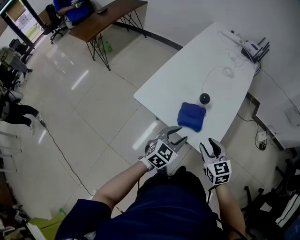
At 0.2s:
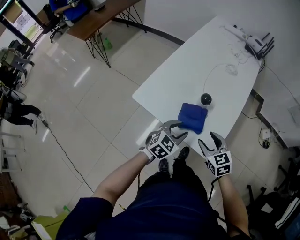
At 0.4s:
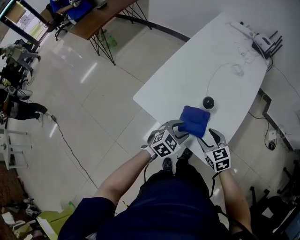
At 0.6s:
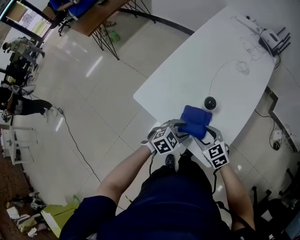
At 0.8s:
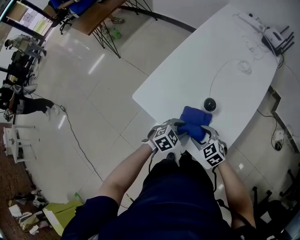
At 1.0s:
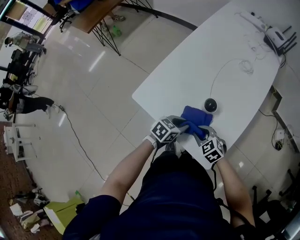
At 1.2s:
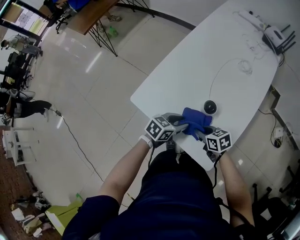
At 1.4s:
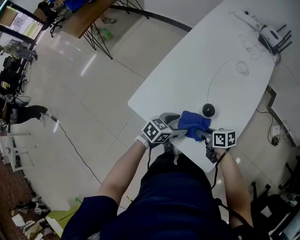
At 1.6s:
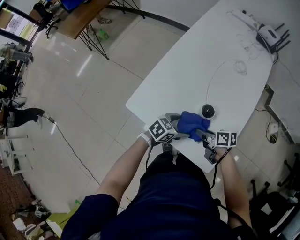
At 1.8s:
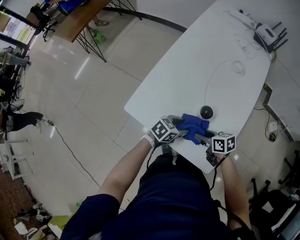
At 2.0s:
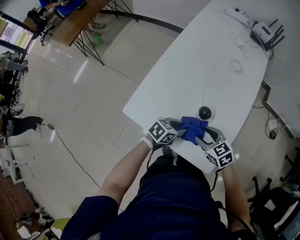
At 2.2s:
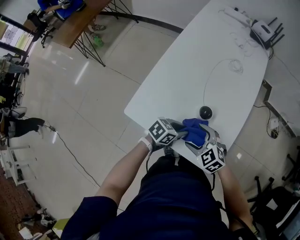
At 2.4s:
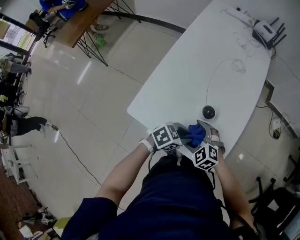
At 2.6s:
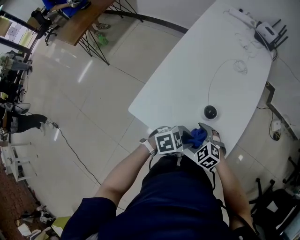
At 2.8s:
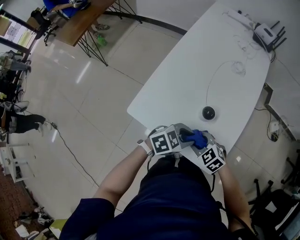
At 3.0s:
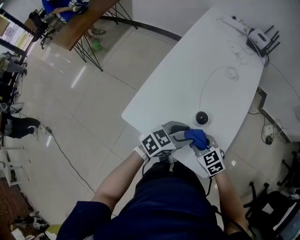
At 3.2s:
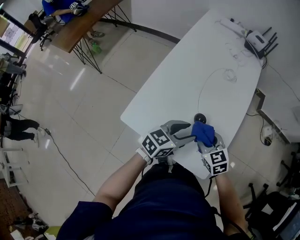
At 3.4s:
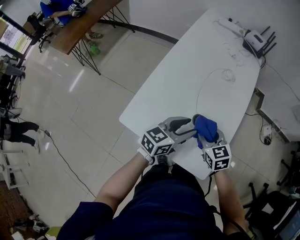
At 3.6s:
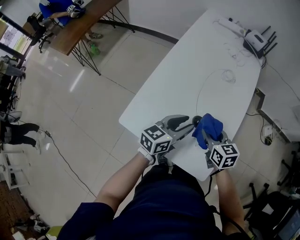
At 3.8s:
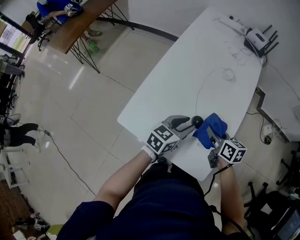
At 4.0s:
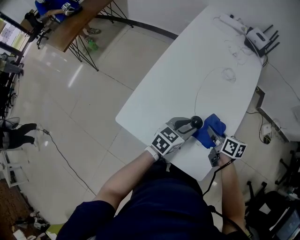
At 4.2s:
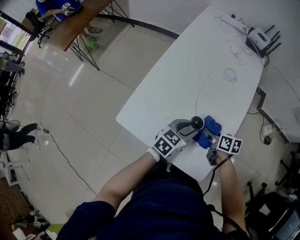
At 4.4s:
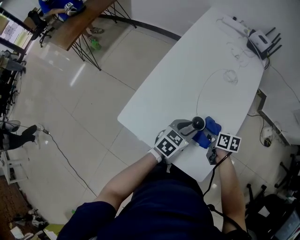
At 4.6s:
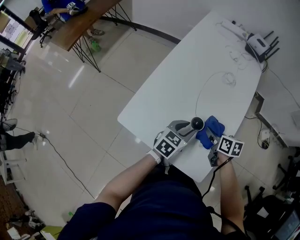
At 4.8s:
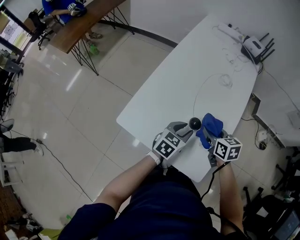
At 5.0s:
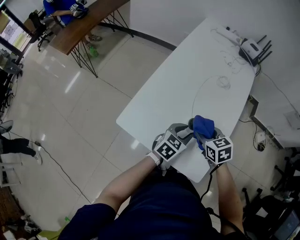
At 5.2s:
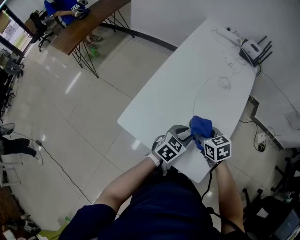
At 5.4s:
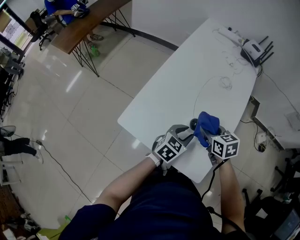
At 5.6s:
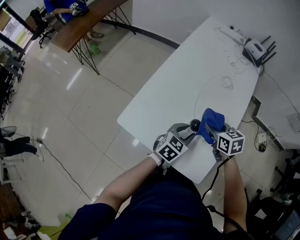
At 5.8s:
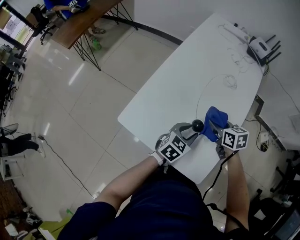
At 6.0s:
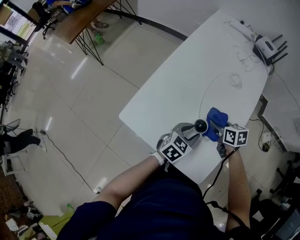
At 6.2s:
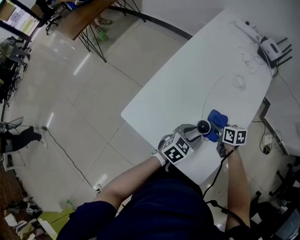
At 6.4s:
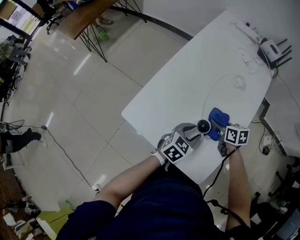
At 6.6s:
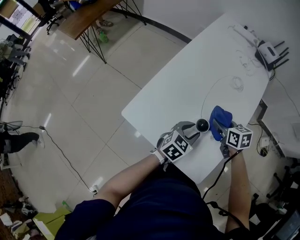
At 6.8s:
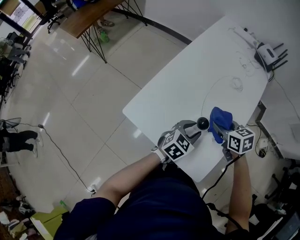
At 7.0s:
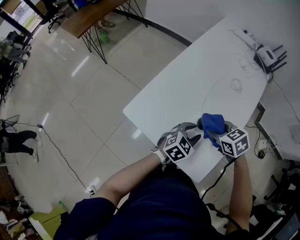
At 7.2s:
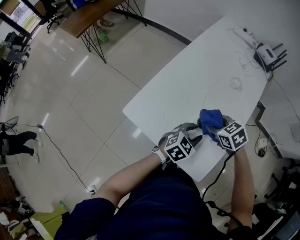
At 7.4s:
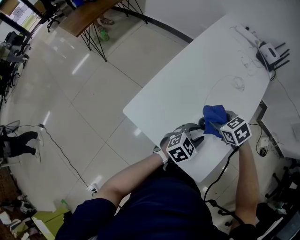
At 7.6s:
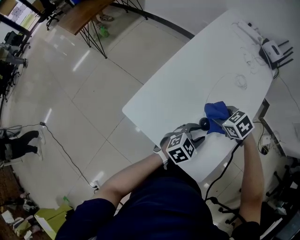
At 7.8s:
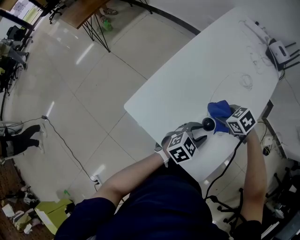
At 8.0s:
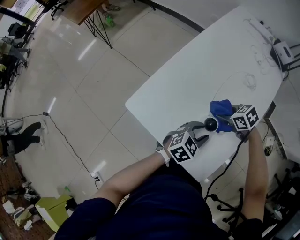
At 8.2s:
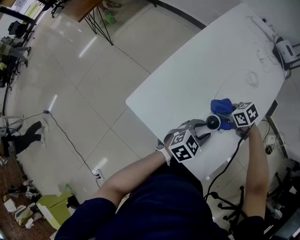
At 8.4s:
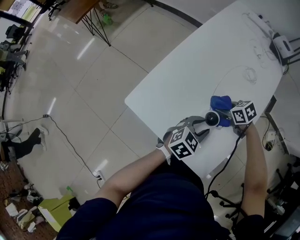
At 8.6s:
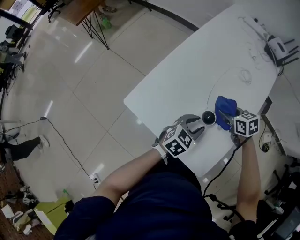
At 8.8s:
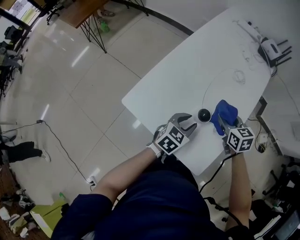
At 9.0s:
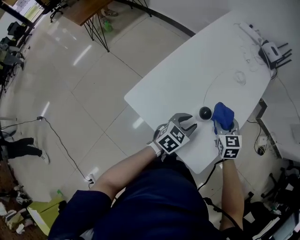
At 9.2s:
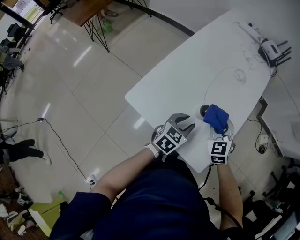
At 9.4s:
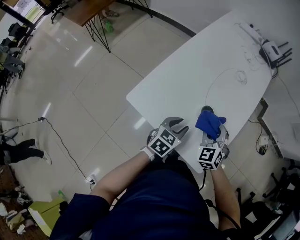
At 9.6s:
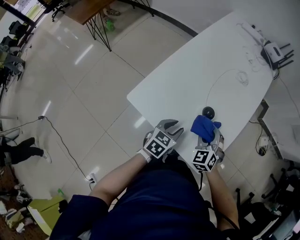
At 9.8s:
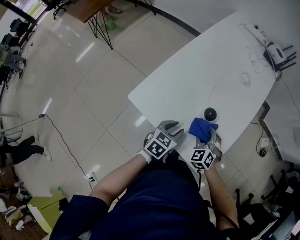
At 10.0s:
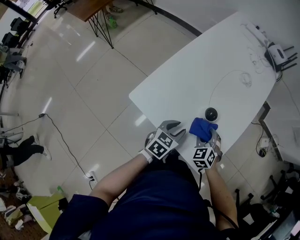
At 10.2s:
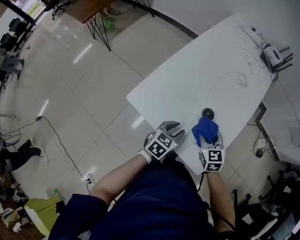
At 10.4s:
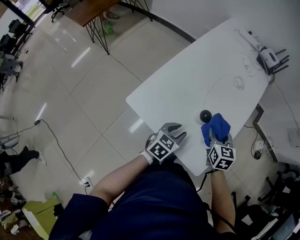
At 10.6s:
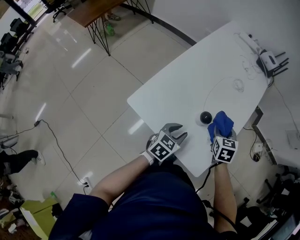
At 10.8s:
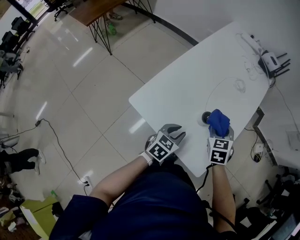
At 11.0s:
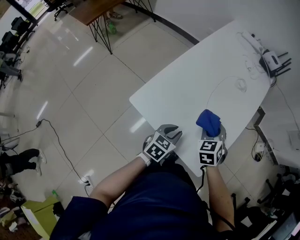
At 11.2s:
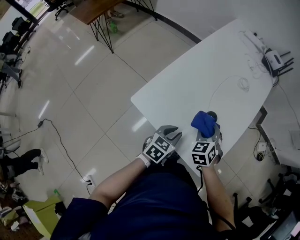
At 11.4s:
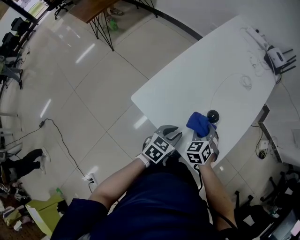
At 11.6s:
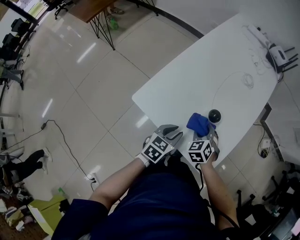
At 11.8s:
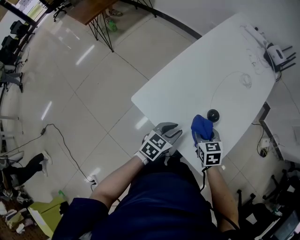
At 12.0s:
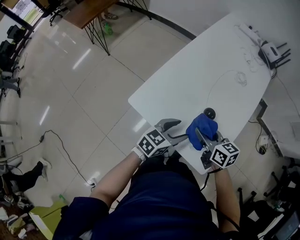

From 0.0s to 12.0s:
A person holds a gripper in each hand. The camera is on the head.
From 0.0s to 1.6s: The right gripper ends up roughly 20 cm from where it was, and rolls clockwise, seen from behind, by about 50 degrees. The left gripper changes place by roughly 15 cm, changes its angle by about 40 degrees, and opens its fingers.
From 1.6s to 3.0s: The left gripper goes about 10 cm upward, and closes. The right gripper goes up and down, some 5 cm each way, reversing 2 times, twists roughly 60 degrees counterclockwise, seen from behind, and opens, then closes once more.
From 3.0s to 4.4s: The right gripper heads forward, to the right and downward, covering about 15 cm, and twists about 60 degrees clockwise, seen from behind, while the left gripper goes about 5 cm forward.
From 4.4s to 6.0s: The right gripper is displaced forward by roughly 5 cm, goes upward and returns, roughly 10 cm each way, and turns by some 20 degrees.
From 6.0s to 7.6s: The right gripper changes its angle by some 50 degrees.
From 7.6s to 9.0s: The right gripper goes downward and returns, some 10 cm each way, and rotates about 40 degrees.
From 9.0s to 10.4s: The left gripper moves approximately 5 cm.
From 10.4s to 12.0s: The left gripper heads upward, covering some 5 cm, while the right gripper goes approximately 10 cm to the left and backward, and changes its angle by some 40 degrees.

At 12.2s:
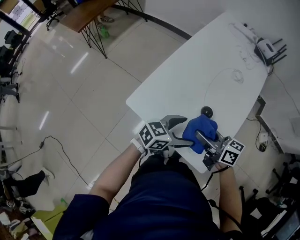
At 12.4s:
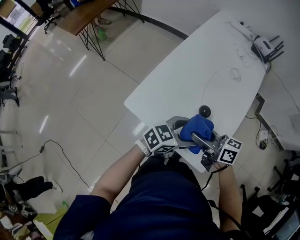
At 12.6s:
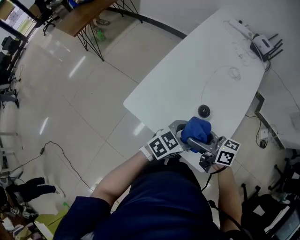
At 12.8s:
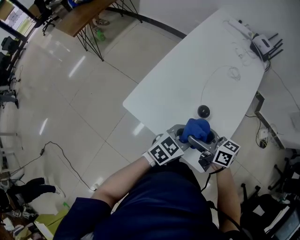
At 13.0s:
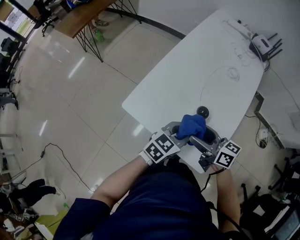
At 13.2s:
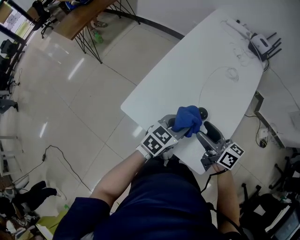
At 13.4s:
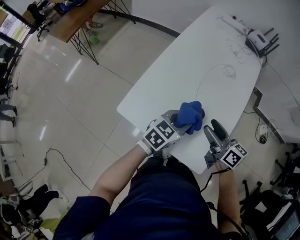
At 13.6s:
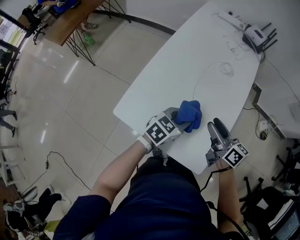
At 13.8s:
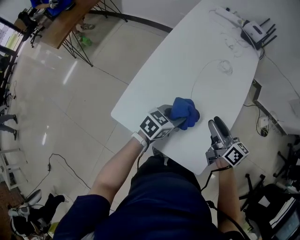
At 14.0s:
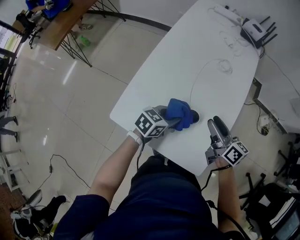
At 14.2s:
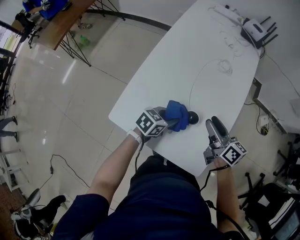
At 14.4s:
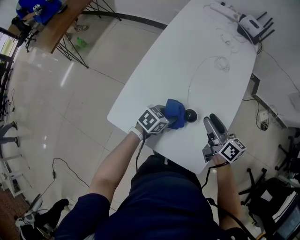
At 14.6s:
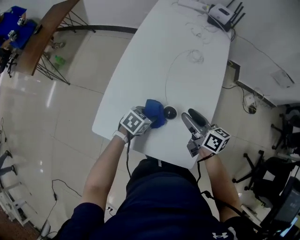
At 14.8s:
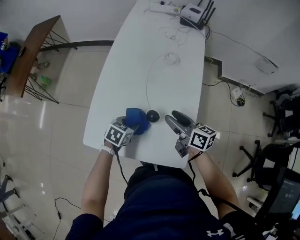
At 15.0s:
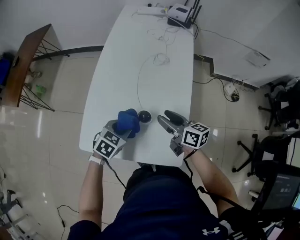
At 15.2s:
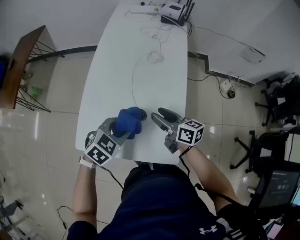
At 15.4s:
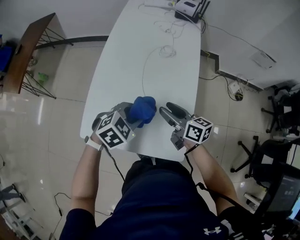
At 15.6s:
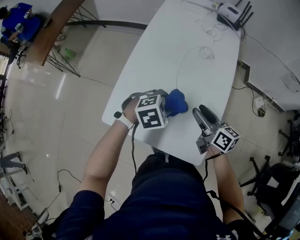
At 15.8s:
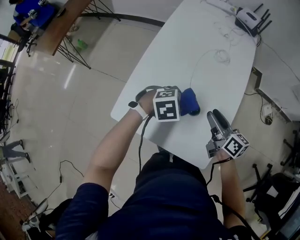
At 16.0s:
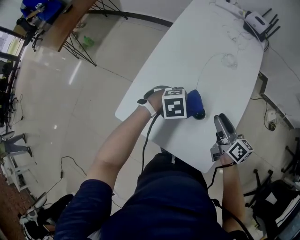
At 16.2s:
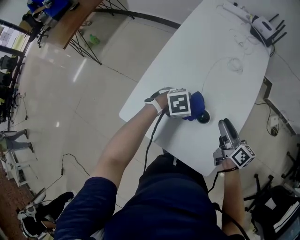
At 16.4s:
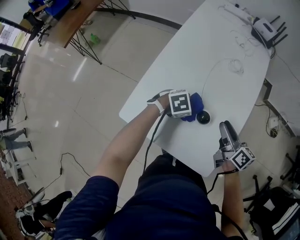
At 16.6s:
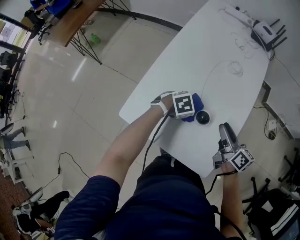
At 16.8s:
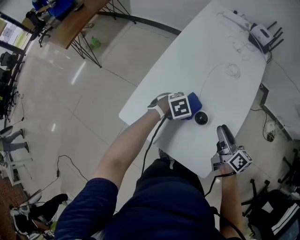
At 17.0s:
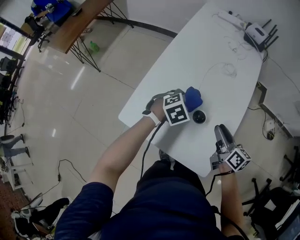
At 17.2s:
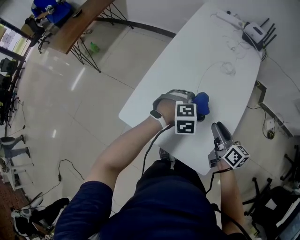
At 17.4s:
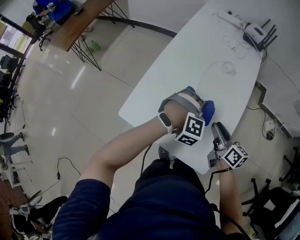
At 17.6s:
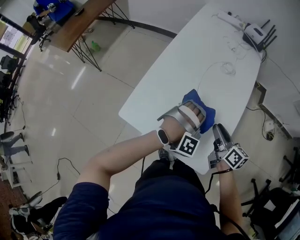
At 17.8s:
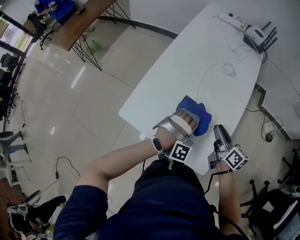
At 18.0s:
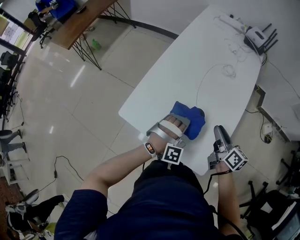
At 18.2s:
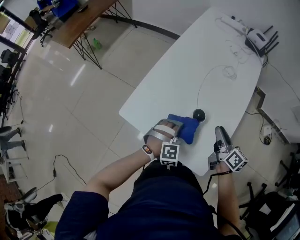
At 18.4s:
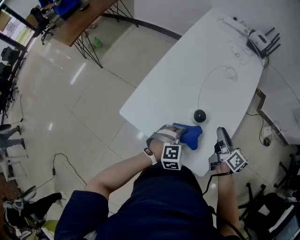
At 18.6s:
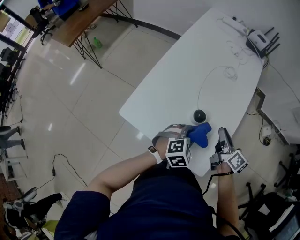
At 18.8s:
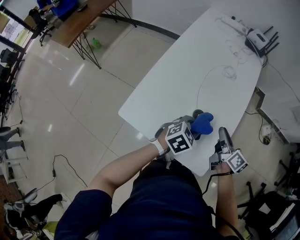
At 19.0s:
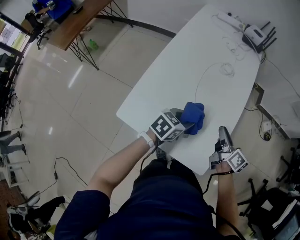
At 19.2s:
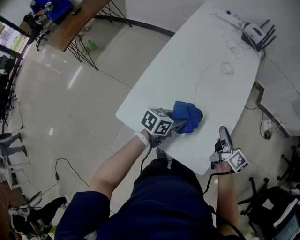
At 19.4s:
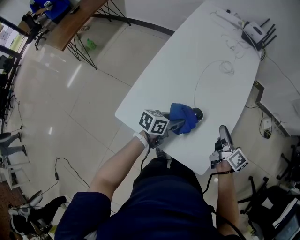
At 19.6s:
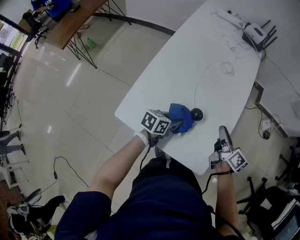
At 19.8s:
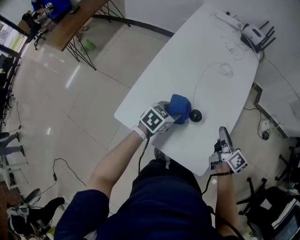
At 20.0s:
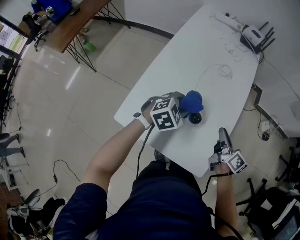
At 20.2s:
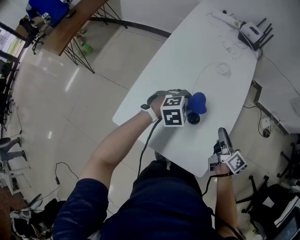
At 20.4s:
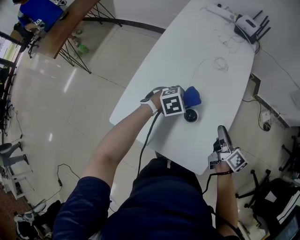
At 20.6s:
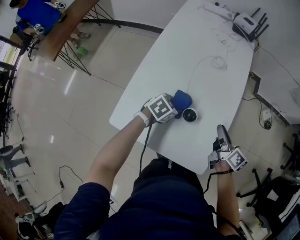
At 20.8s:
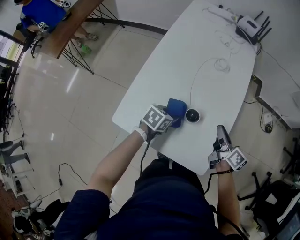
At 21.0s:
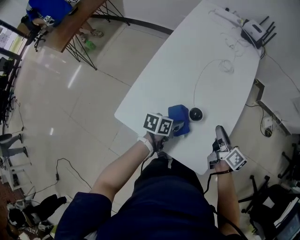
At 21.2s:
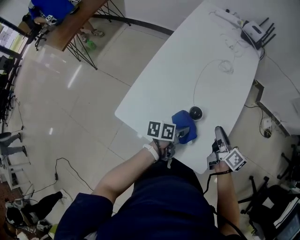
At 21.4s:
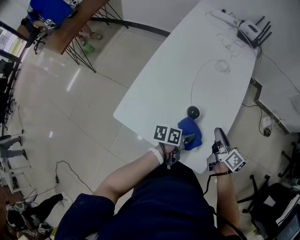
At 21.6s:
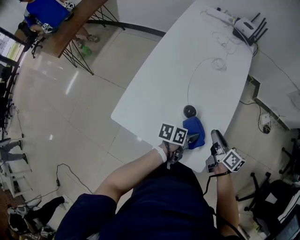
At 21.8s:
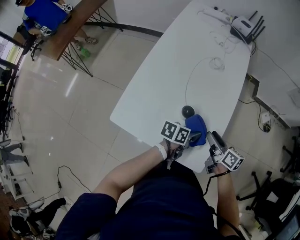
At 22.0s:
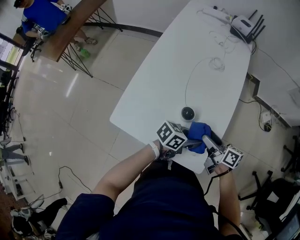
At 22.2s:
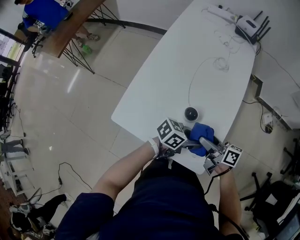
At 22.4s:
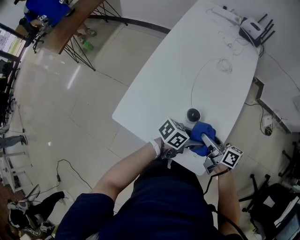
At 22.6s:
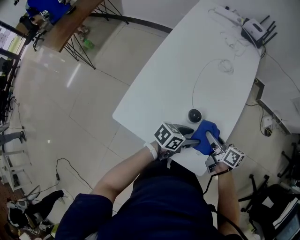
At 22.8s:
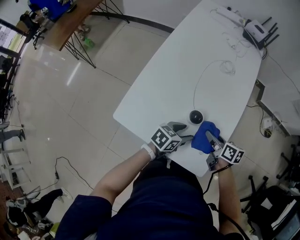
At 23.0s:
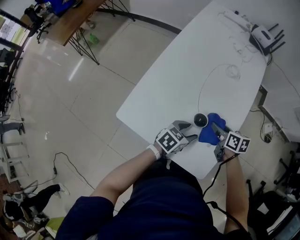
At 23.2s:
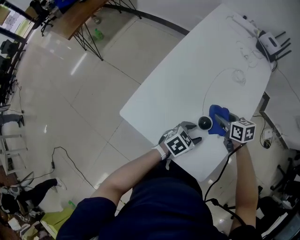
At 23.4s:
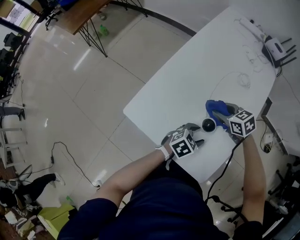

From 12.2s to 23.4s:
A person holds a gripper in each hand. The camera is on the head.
From 12.2s to 13.8s: The left gripper changes place by approximately 10 cm, and closes up; the right gripper ends up approximately 15 cm from where it was, and swivels roughly 30 degrees.
From 13.8s to 15.4s: The left gripper moves about 10 cm downward and comes back, and turns by approximately 40 degrees.
From 15.4s to 17.0s: The left gripper goes roughly 10 cm downward, to the left and forward.
From 17.0s to 18.6s: The left gripper moves backward and to the right, about 15 cm.
From 18.6s to 20.2s: The left gripper travels forward and to the left by approximately 15 cm.
From 20.2s to 21.8s: The right gripper moves roughly 5 cm, while the left gripper goes roughly 15 cm to the right and backward, and twists some 70 degrees counterclockwise, seen from behind.
From 21.8s to 23.4s: The right gripper moves roughly 20 cm, turns by roughly 70 degrees, and opens, then closes again; the left gripper ends up about 10 cm from where it was, changes its angle by about 40 degrees, and opens up.
